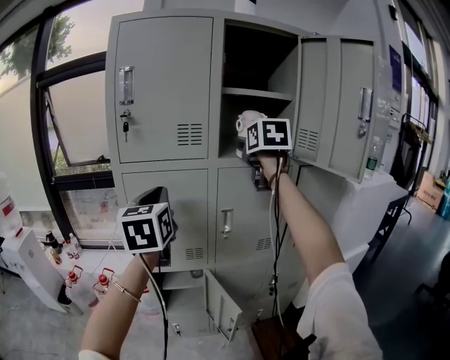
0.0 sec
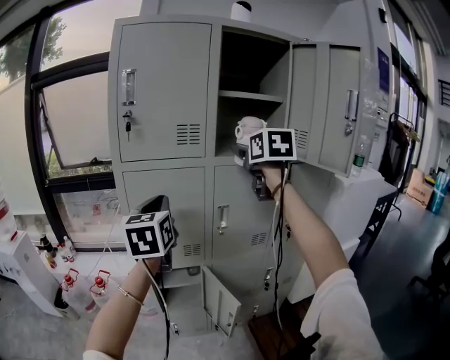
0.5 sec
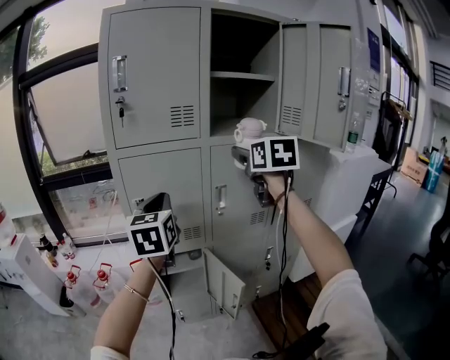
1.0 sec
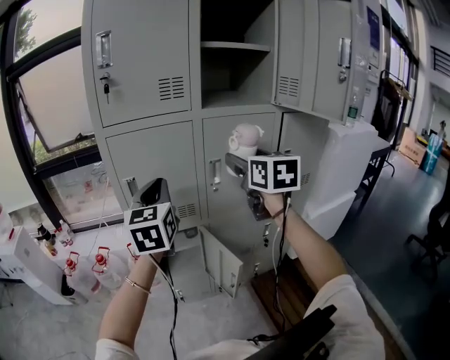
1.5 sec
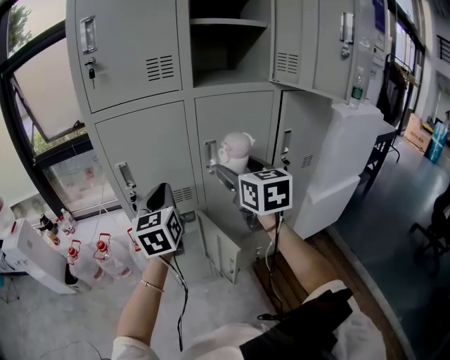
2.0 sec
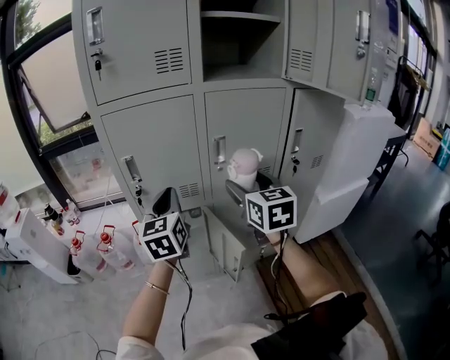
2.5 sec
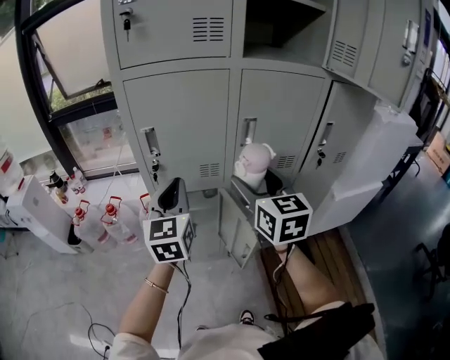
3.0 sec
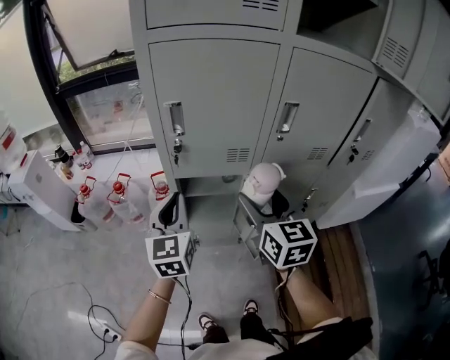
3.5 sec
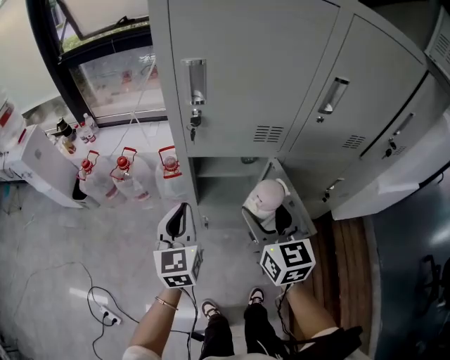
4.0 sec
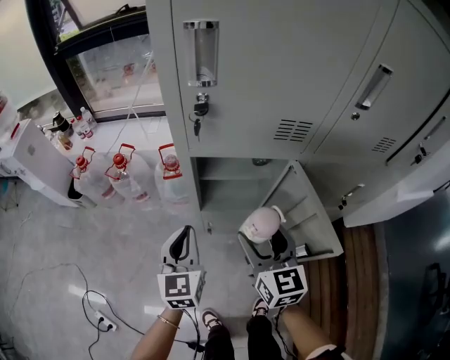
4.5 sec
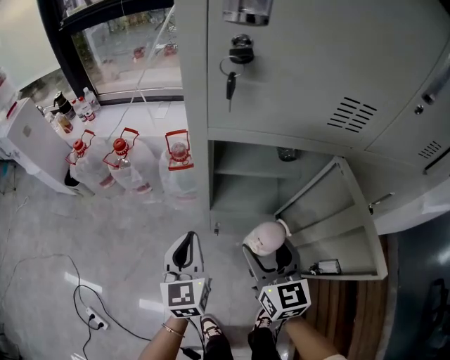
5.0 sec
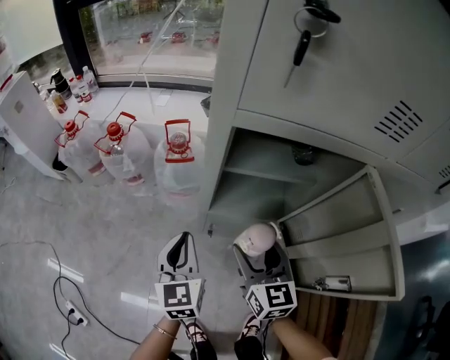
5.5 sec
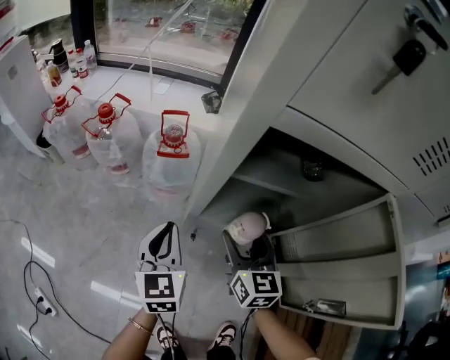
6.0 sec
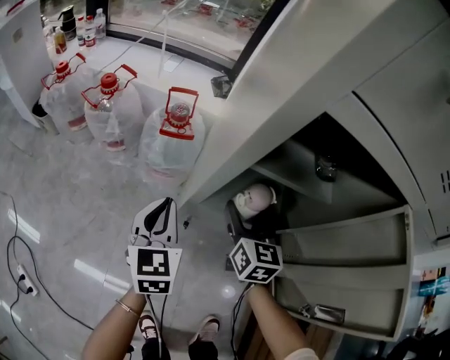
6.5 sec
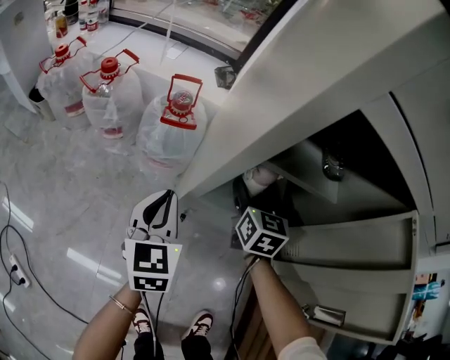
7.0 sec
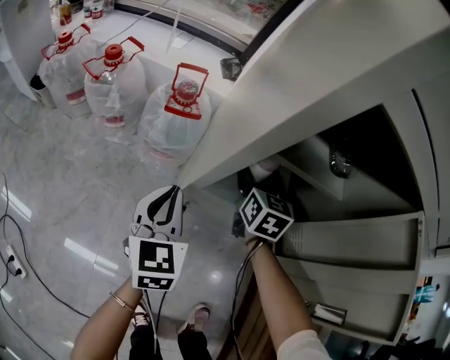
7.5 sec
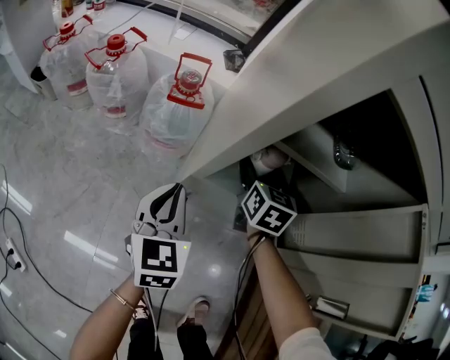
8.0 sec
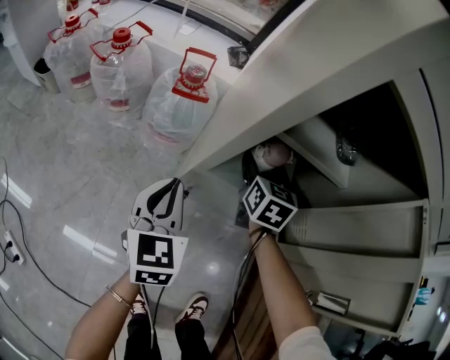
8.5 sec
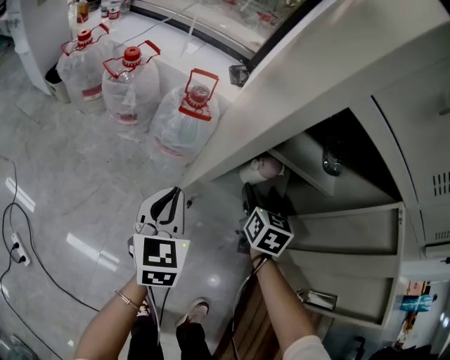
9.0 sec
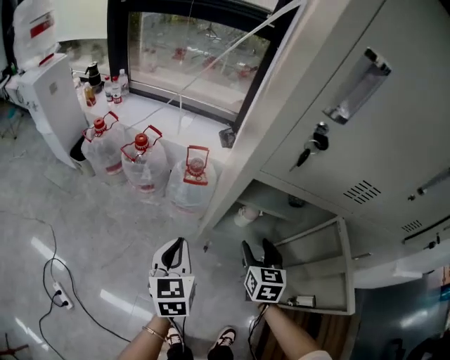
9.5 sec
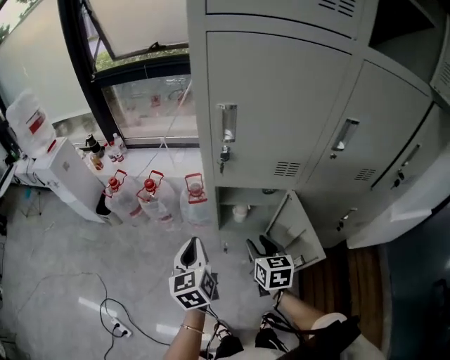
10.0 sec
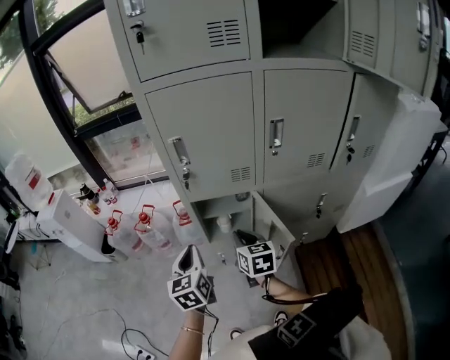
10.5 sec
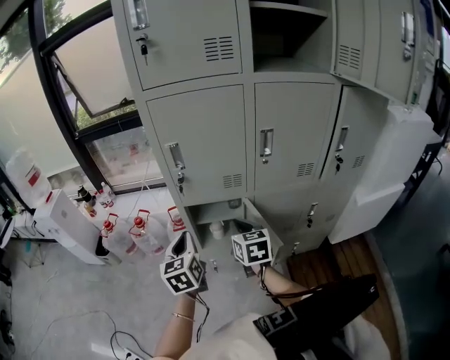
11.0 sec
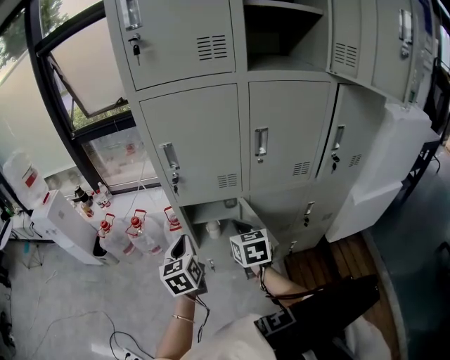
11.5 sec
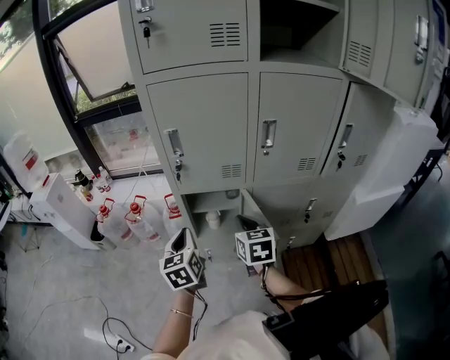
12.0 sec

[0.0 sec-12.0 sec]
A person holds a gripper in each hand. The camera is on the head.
0.0 sec to 2.0 sec: The right gripper goes about 25 cm downward and backward; the left gripper shifts some 15 cm downward.
2.0 sec to 4.0 sec: The grippers both shift downward and to the left by about 30 cm.
4.0 sec to 6.0 sec: Both grippers travel together downward, some 35 cm.
6.0 sec to 8.0 sec: The right gripper travels forward and downward by some 15 cm.
8.0 sec to 10.0 sec: The right gripper shifts some 40 cm upward and backward, and closes its fingers. Meanwhile the left gripper shifts approximately 35 cm upward.
10.0 sec to 12.0 sec: The grippers both shift upward and to the right by approximately 15 cm. The right gripper closes its fingers.

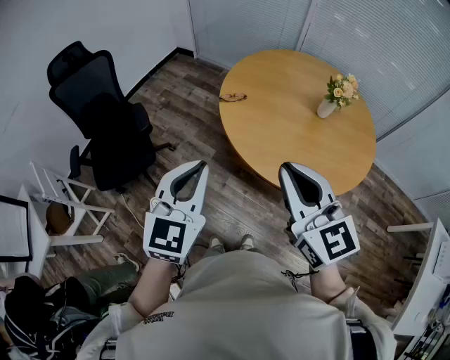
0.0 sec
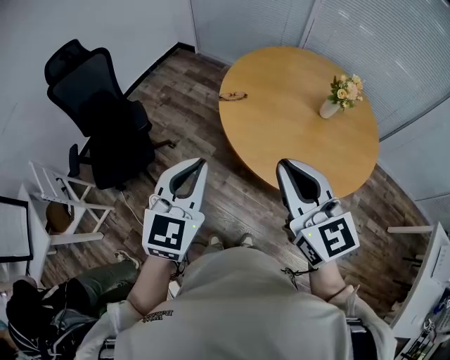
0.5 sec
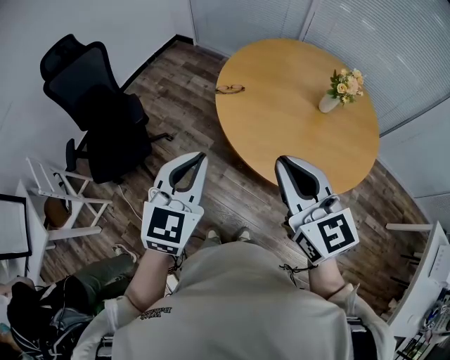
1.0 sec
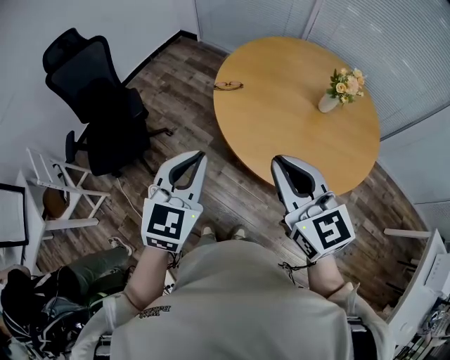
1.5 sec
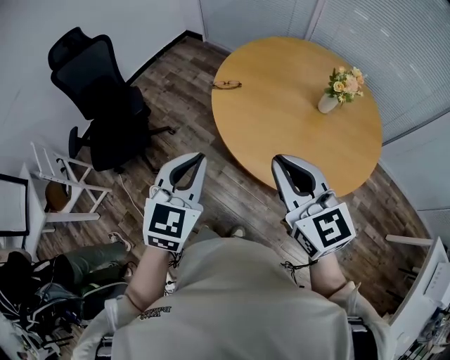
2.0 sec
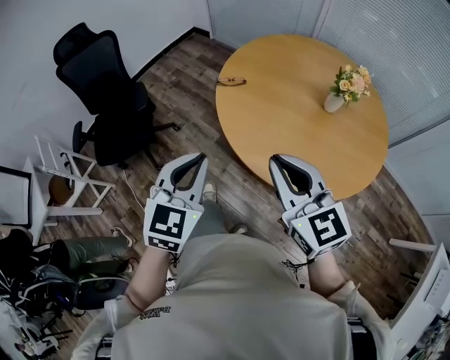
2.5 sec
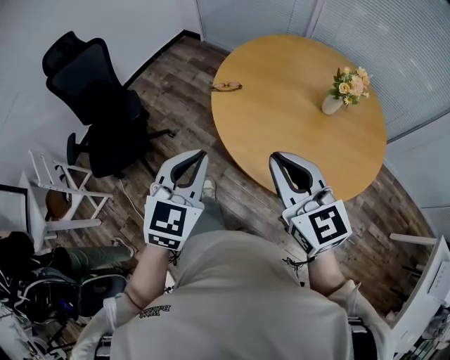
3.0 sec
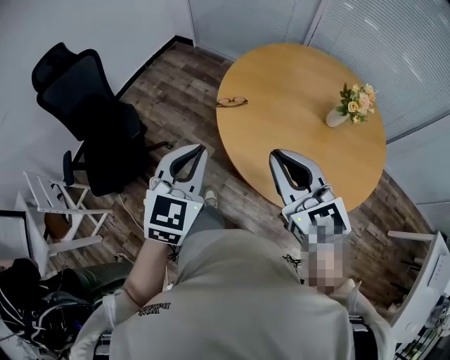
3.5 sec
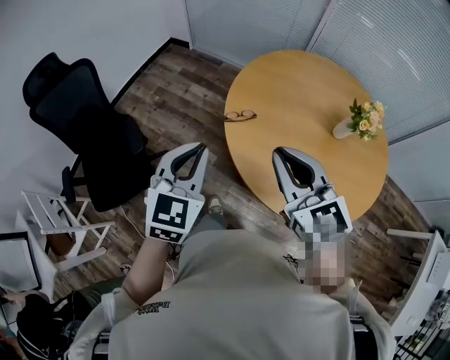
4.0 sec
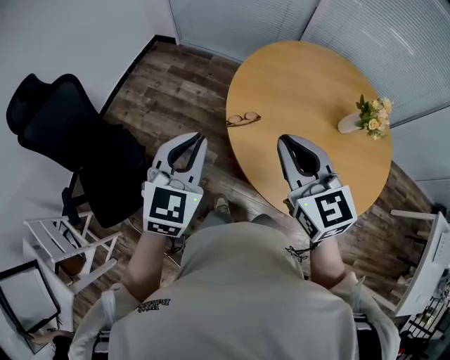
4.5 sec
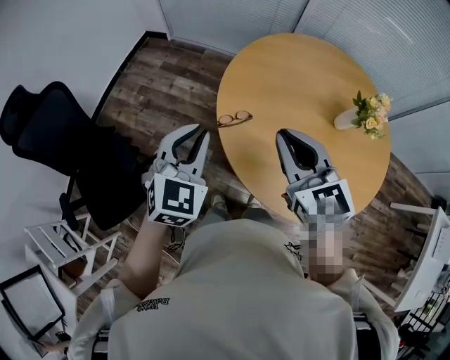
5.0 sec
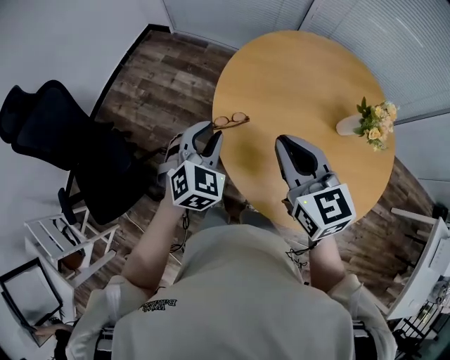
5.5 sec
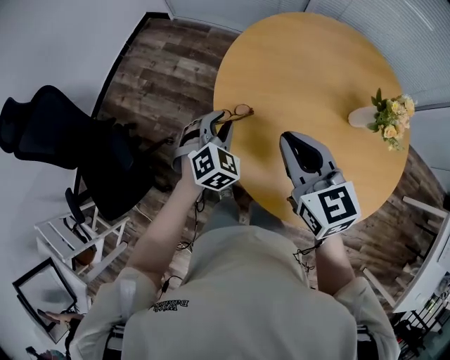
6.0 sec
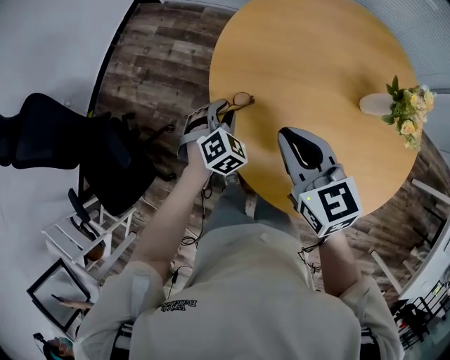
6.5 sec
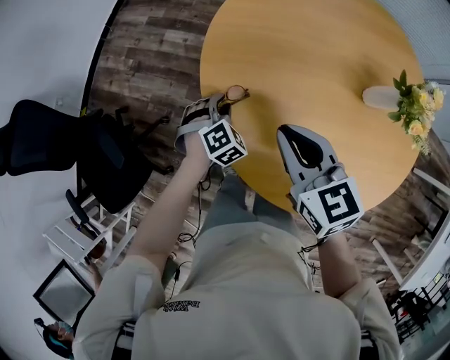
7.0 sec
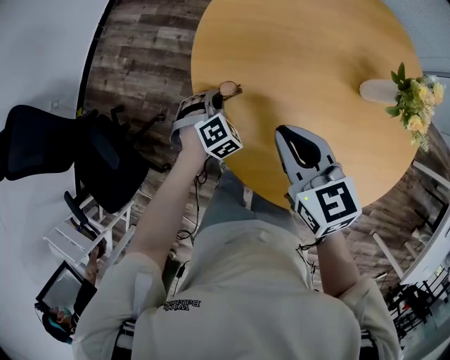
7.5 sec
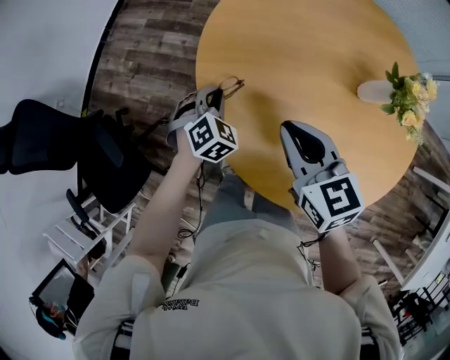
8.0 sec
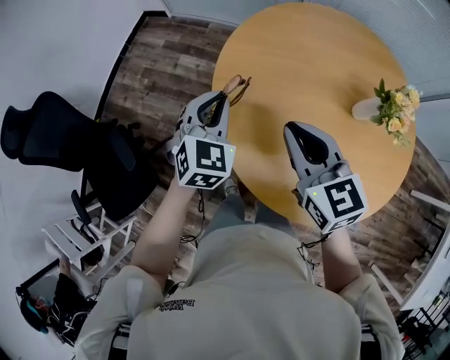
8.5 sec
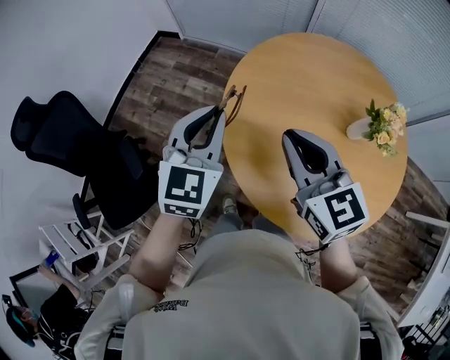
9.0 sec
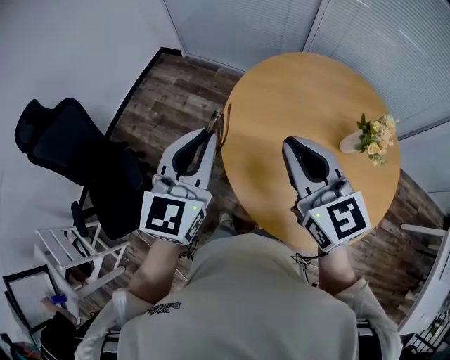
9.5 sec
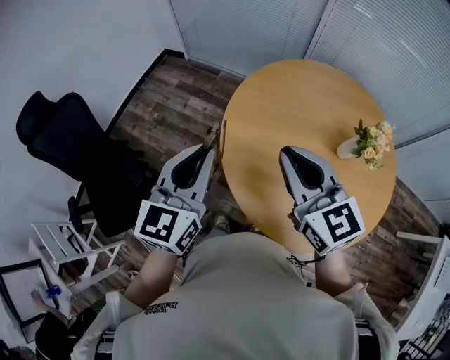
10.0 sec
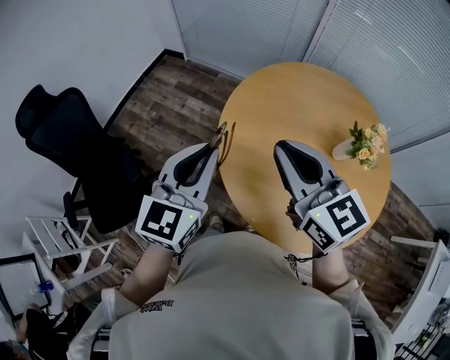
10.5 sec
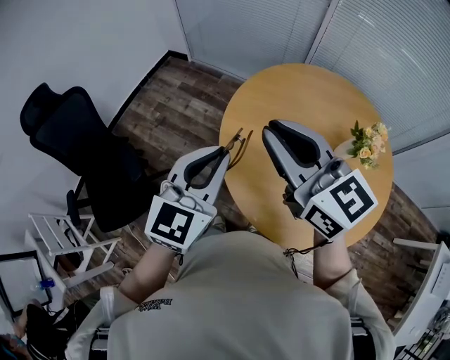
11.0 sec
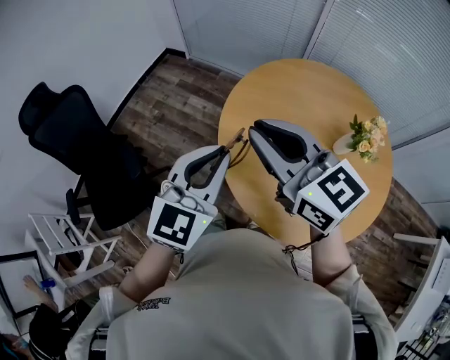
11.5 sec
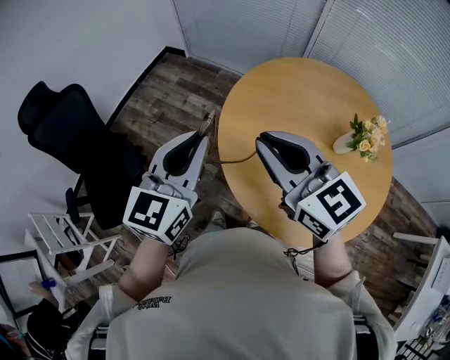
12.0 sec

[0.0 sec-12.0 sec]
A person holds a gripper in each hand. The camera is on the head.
0.0 sec to 2.0 sec: Both grippers move to the right and downward, about 10 cm.
2.0 sec to 4.0 sec: The grippers both shift forward and to the left by roughly 25 cm.
4.0 sec to 6.0 sec: The left gripper travels downward and forward by roughly 30 cm, rotates approximately 40 degrees, and opens its fingers. Meanwhile the right gripper shifts about 20 cm forward and downward.
6.0 sec to 8.0 sec: Both grippers move downward, roughly 10 cm.
8.0 sec to 10.0 sec: The left gripper shifts some 35 cm upward, and tips its fingers upward by approximately 40 degrees. The right gripper travels upward by approximately 20 cm, and turns by roughly 20 degrees.
10.0 sec to 12.0 sec: The right gripper shifts by roughly 5 cm.

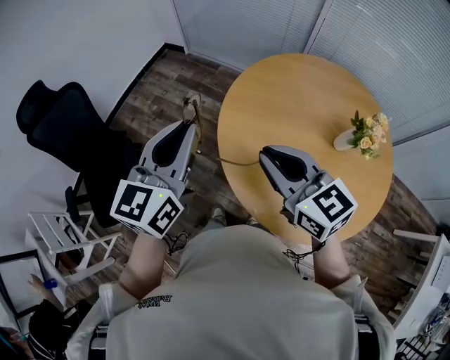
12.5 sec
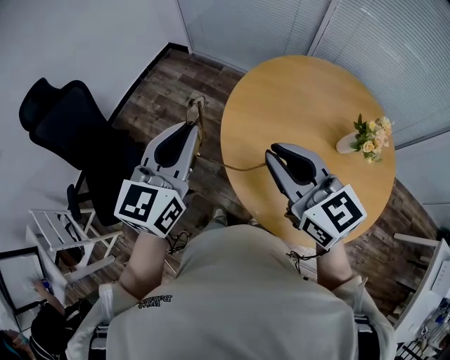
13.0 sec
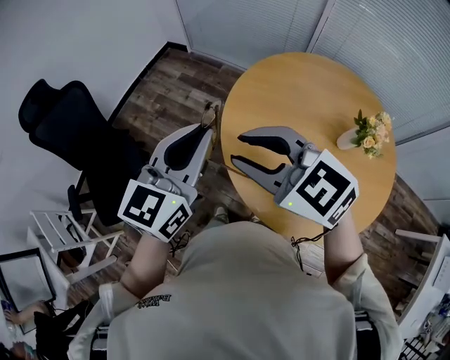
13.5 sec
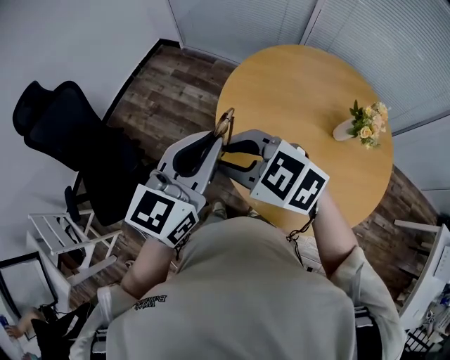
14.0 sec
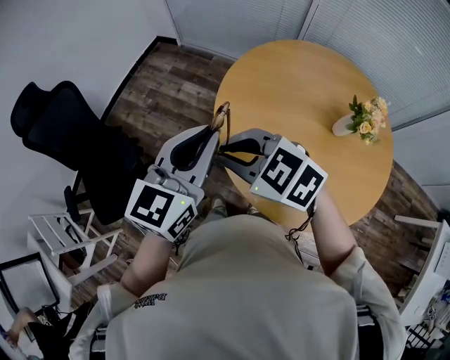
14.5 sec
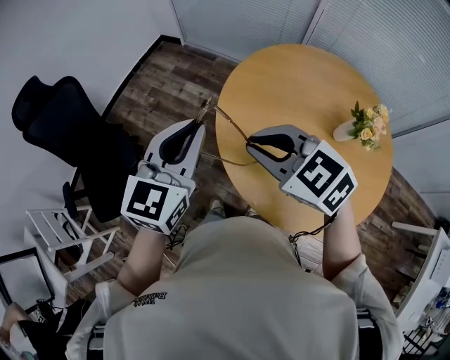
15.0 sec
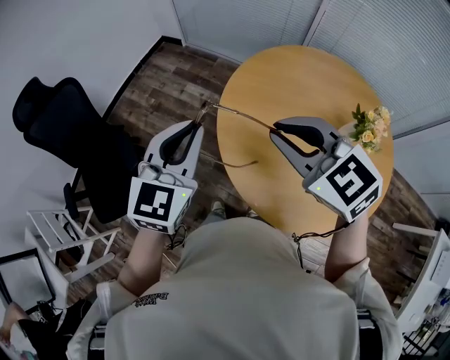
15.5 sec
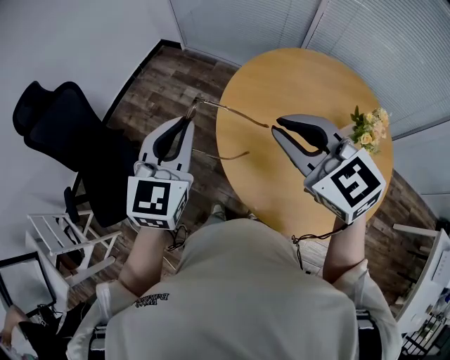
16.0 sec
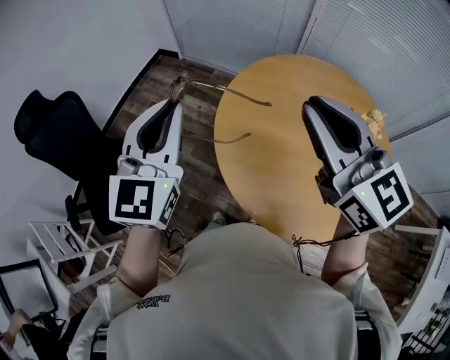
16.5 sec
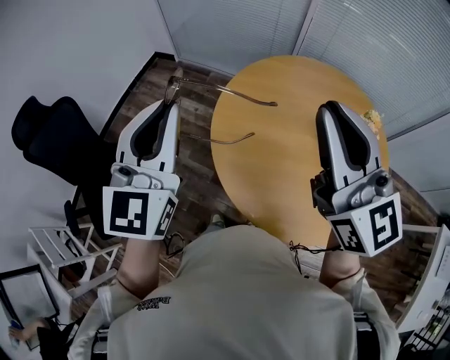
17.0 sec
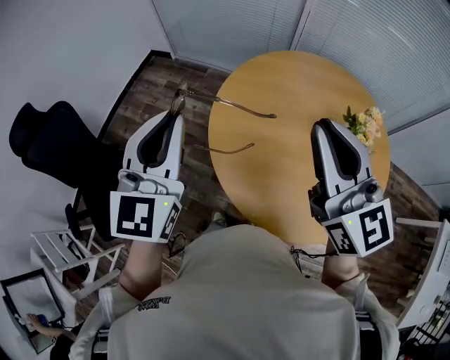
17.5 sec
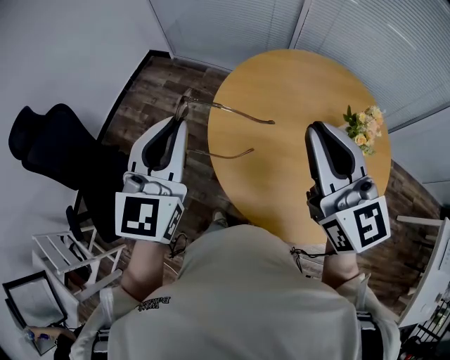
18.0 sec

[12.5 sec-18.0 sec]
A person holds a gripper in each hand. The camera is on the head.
12.5 sec to 14.5 sec: The left gripper changes place by some 5 cm, while the right gripper goes some 10 cm to the left, and rotates approximately 40 degrees.
14.5 sec to 16.0 sec: The right gripper travels to the right and upward by about 15 cm, and changes its angle by roughly 20 degrees. The left gripper goes approximately 5 cm forward.
16.0 sec to 18.0 sec: The left gripper travels upward by some 5 cm. Meanwhile the right gripper shifts about 10 cm to the right and upward, and changes its angle by roughly 40 degrees.
